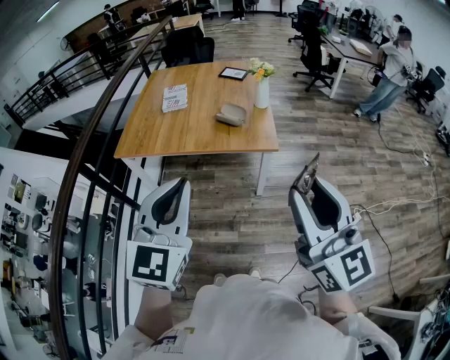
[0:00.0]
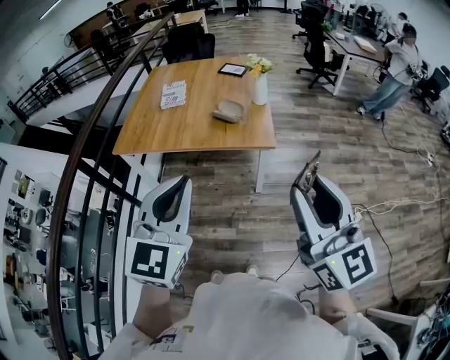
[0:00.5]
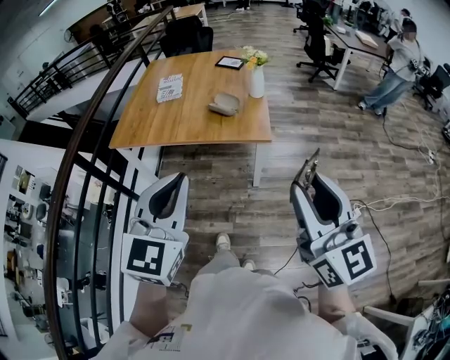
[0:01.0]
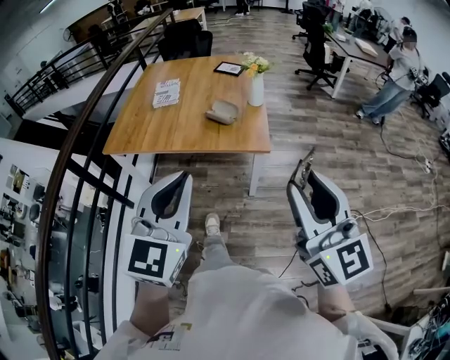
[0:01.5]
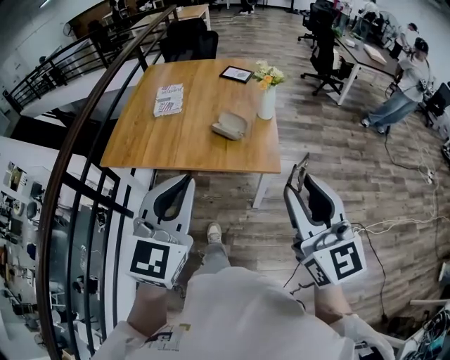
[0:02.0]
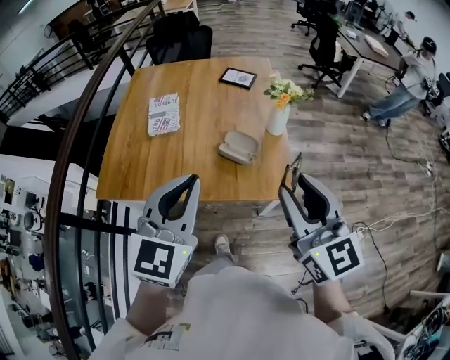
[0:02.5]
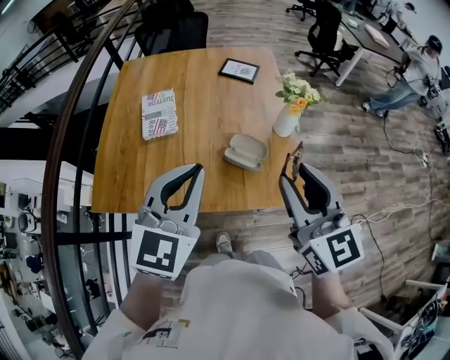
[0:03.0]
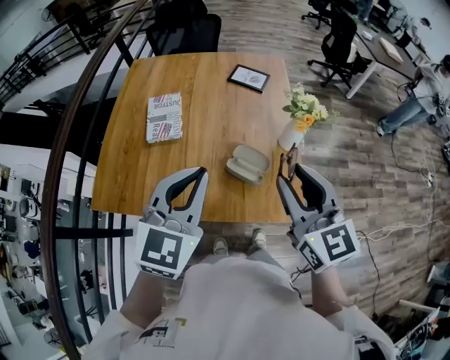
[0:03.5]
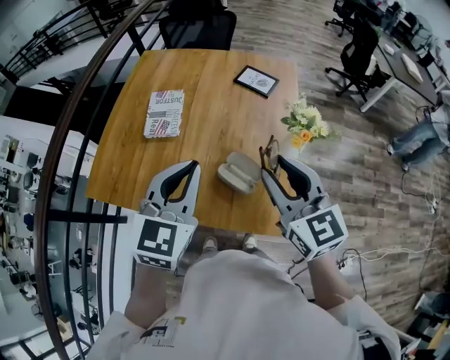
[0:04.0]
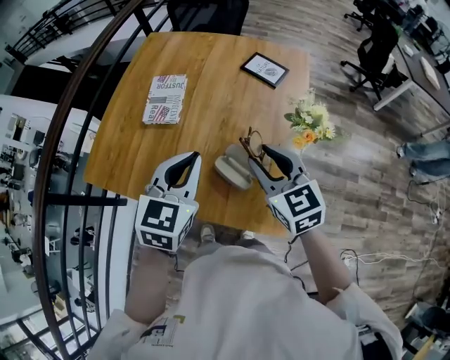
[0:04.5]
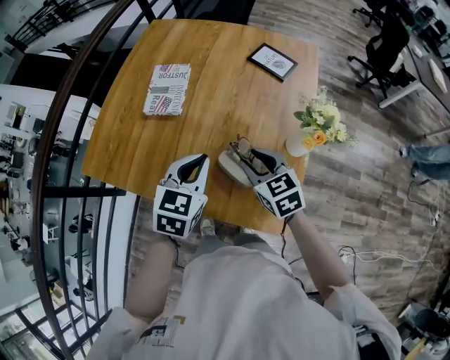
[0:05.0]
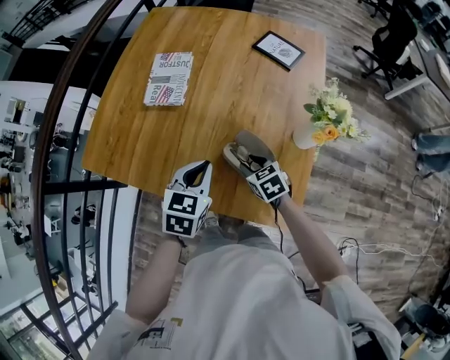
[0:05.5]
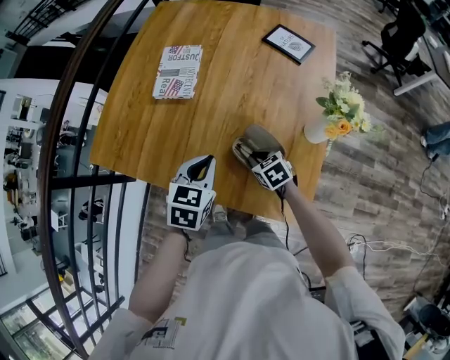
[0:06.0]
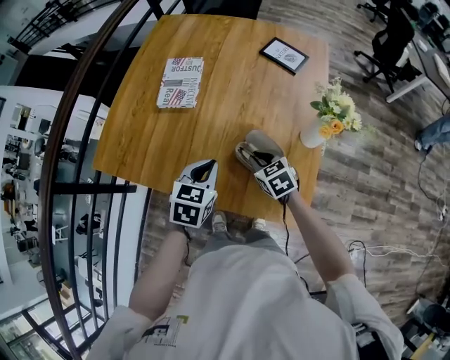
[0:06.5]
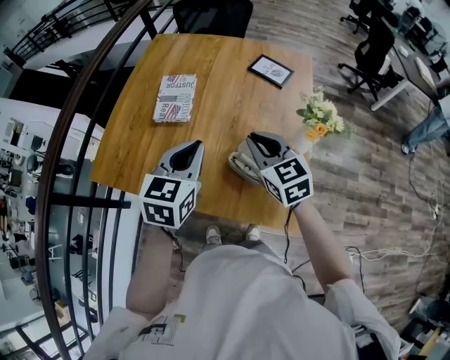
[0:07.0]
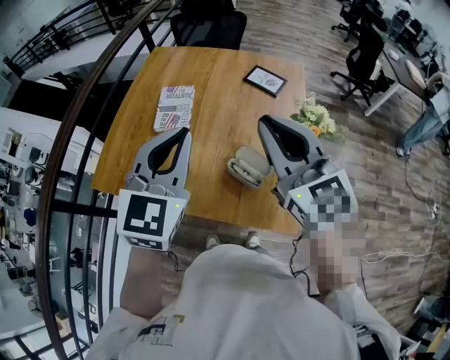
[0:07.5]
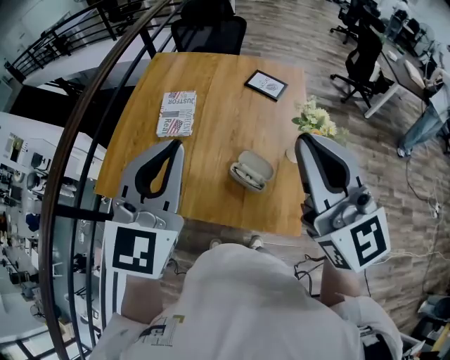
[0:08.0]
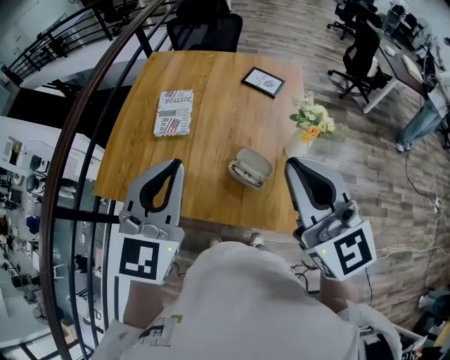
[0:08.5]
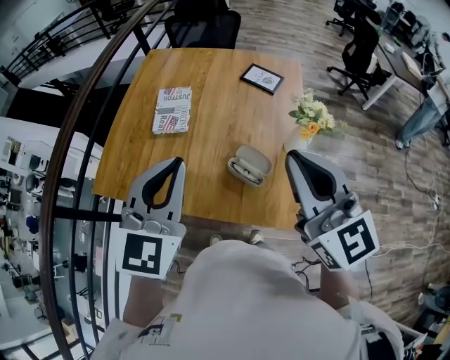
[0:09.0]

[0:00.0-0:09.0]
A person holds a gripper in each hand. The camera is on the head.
0:00.0 to 0:02.0: The two grippers go some 20 cm forward.
0:02.0 to 0:04.5: Both grippers are carried forward, roughly 50 cm. The left gripper changes its angle by some 20 degrees; the right gripper rotates approximately 30 degrees.
0:04.5 to 0:07.0: Both grippers travel together to the left, roughly 5 cm. The left gripper moves some 15 cm downward and comes back. The right gripper moves about 30 cm downward and comes back, and closes.
0:07.0 to 0:09.0: The right gripper heads upward and backward, covering about 25 cm, and turns by some 20 degrees. Meanwhile the left gripper goes about 15 cm upward and backward, and changes its angle by about 20 degrees.

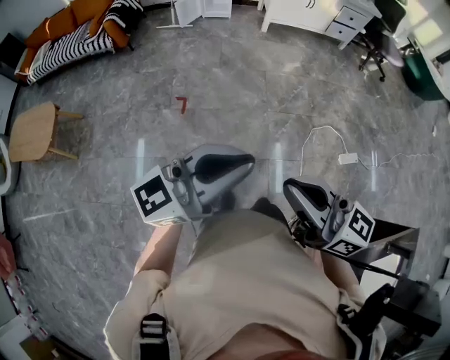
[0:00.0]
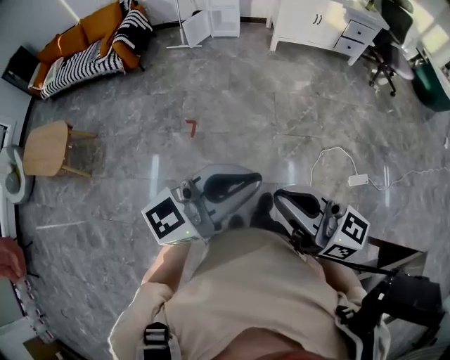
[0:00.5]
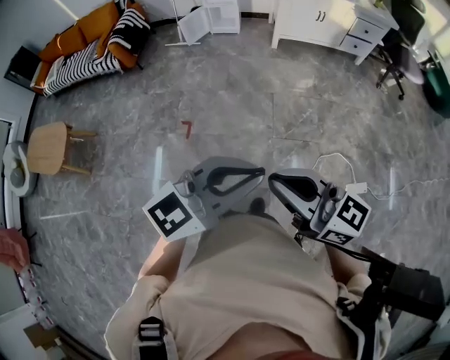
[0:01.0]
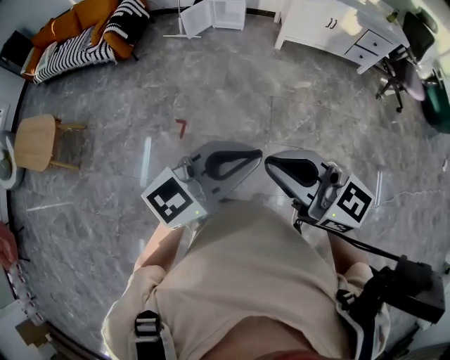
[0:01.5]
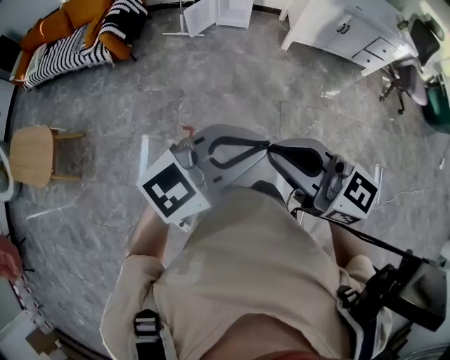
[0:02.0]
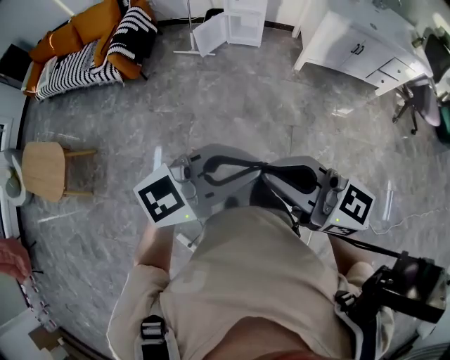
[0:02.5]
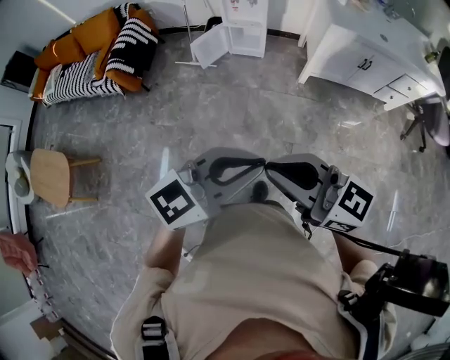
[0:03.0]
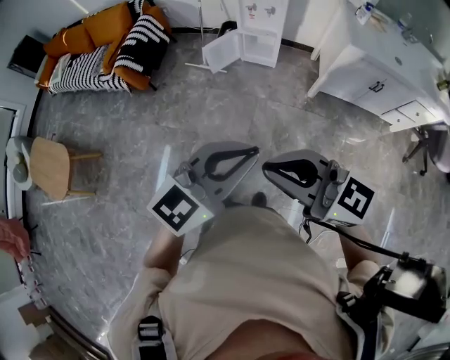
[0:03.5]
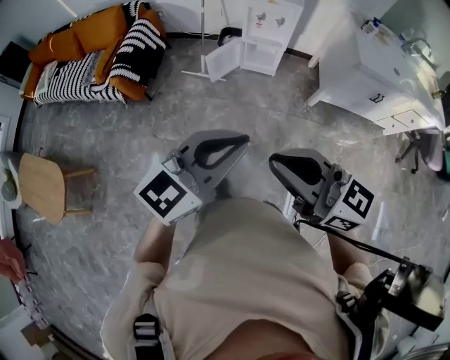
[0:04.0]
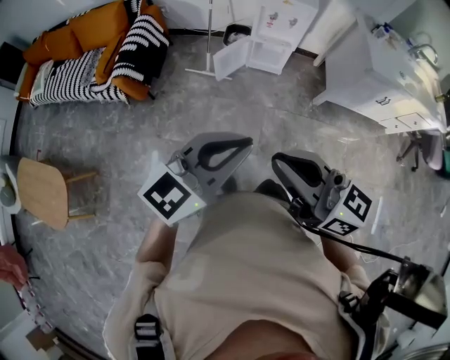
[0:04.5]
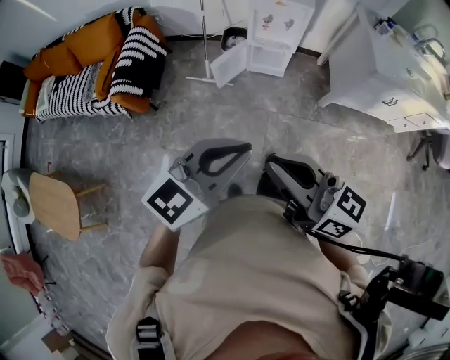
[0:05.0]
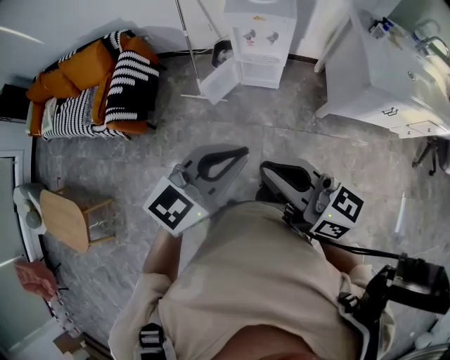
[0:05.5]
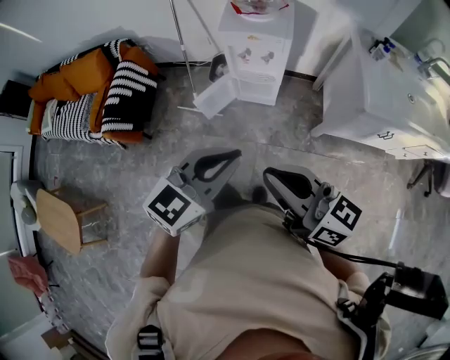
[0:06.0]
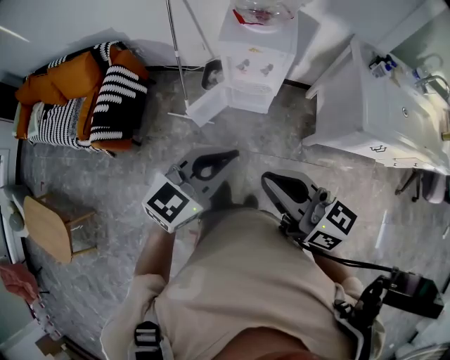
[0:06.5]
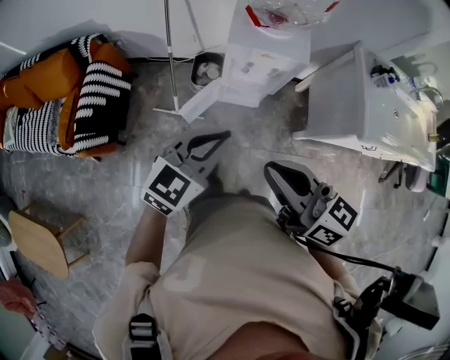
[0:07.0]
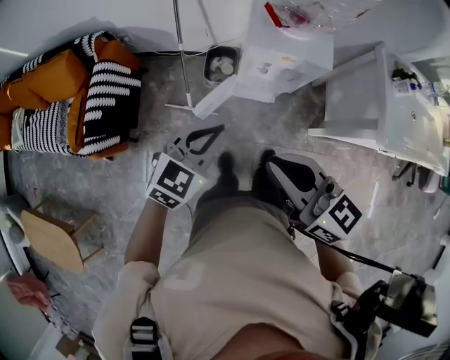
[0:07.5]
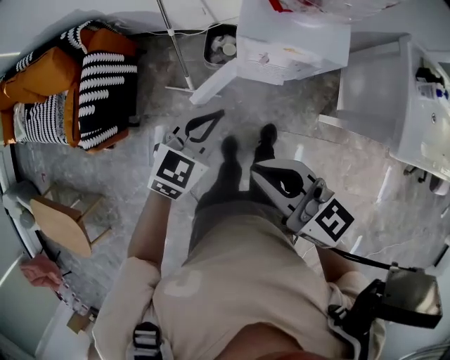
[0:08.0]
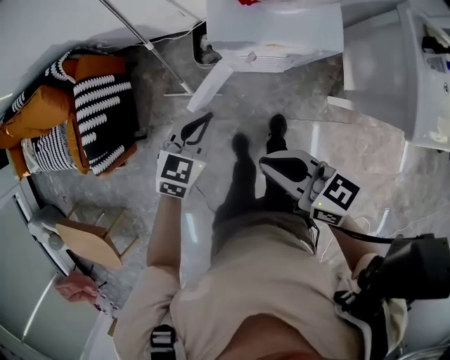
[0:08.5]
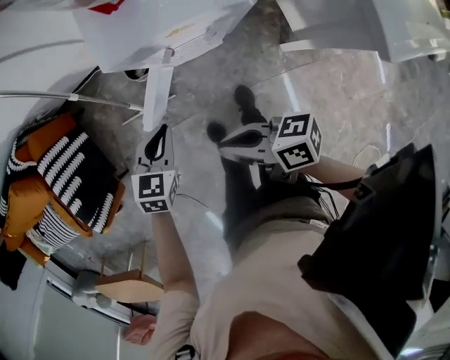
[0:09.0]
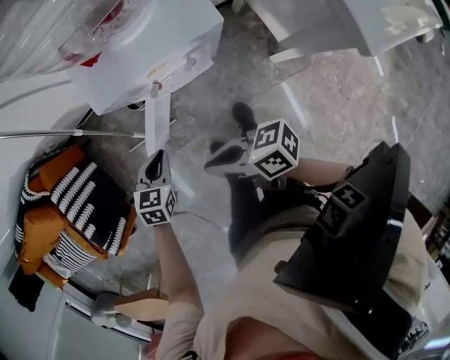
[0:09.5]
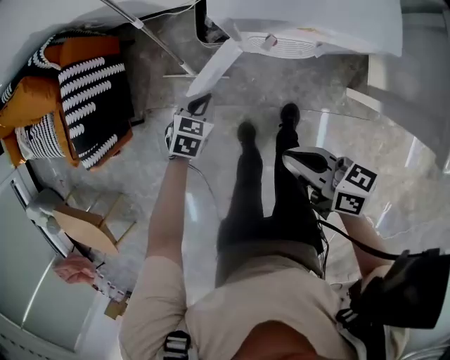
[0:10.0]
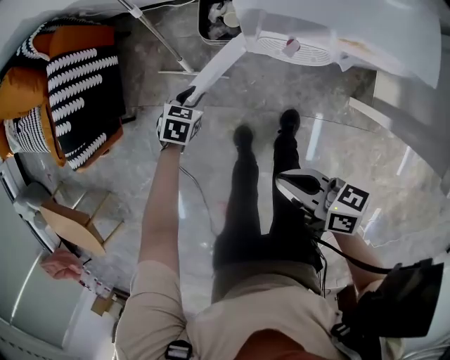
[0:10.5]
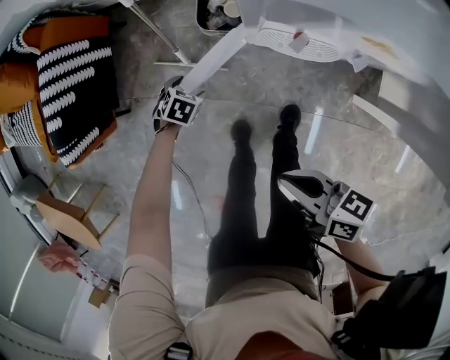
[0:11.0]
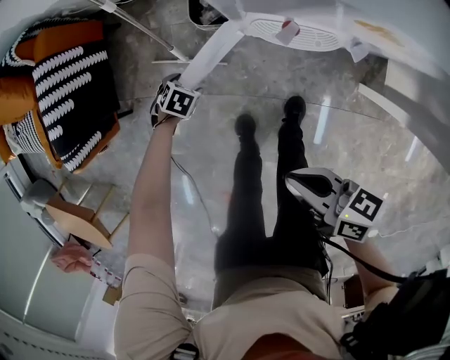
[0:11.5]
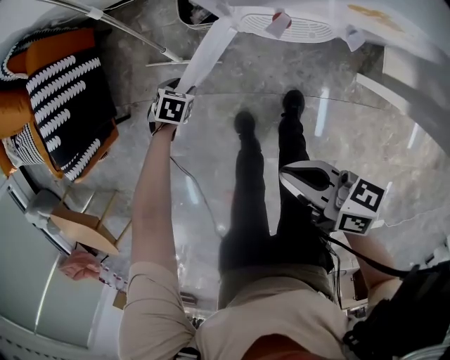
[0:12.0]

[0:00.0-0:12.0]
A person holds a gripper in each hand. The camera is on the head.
0:00.0 to 0:02.0: Both grippers are carried about 50 cm. The left gripper swivels about 30 degrees.
0:02.0 to 0:04.0: The two grippers travel together, about 40 cm. The left gripper turns by about 20 degrees.
0:04.0 to 0:06.0: The left gripper goes some 30 cm forward; the right gripper goes approximately 30 cm forward and to the right.
0:06.0 to 0:08.0: The right gripper shifts about 30 cm forward and to the left; the left gripper shifts some 35 cm forward and downward.
0:08.0 to 0:10.0: The grippers both shift downward by approximately 30 cm. The right gripper swivels about 30 degrees. The left gripper turns by approximately 30 degrees.
0:10.0 to 0:12.0: The right gripper goes some 10 cm downward. Meanwhile the left gripper travels downward by some 20 cm, rotates some 20 degrees, and opens its fingers.

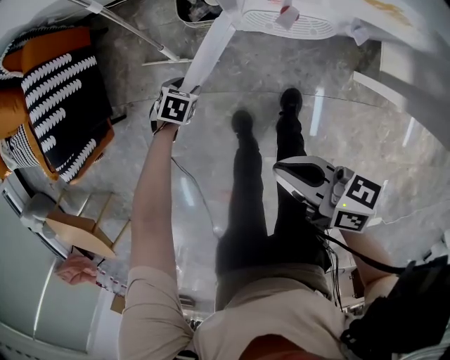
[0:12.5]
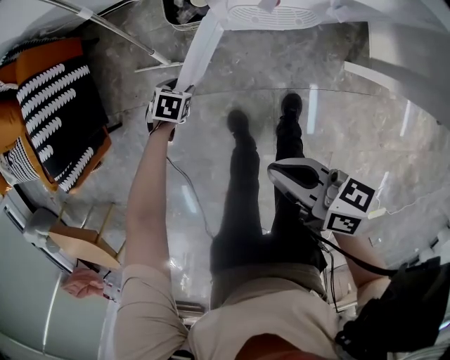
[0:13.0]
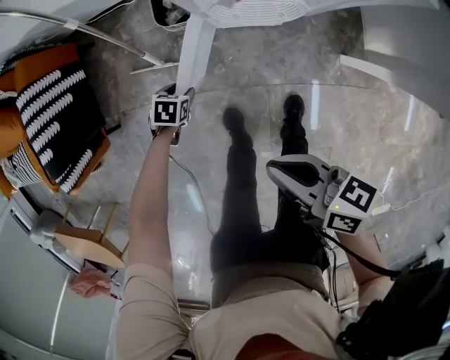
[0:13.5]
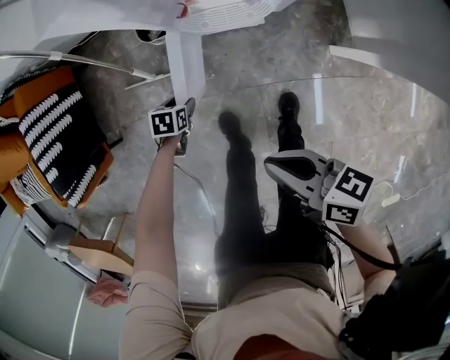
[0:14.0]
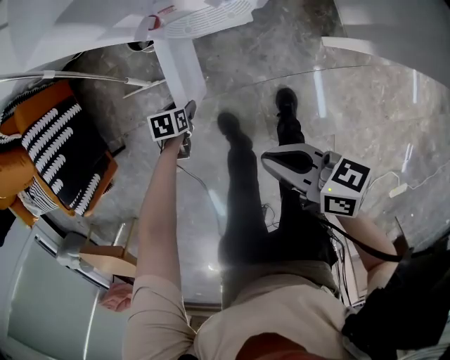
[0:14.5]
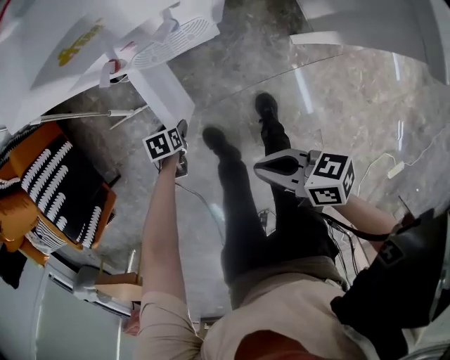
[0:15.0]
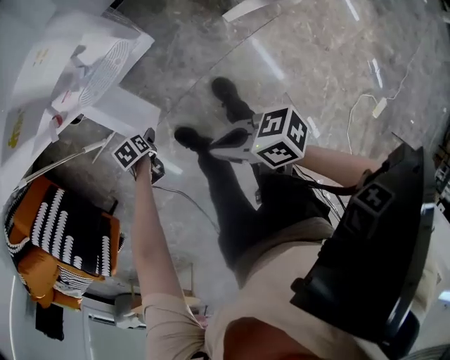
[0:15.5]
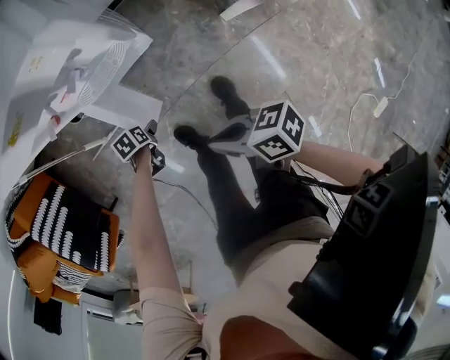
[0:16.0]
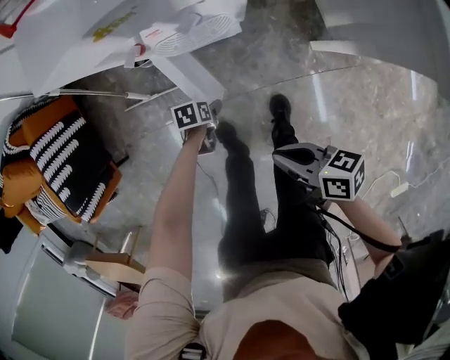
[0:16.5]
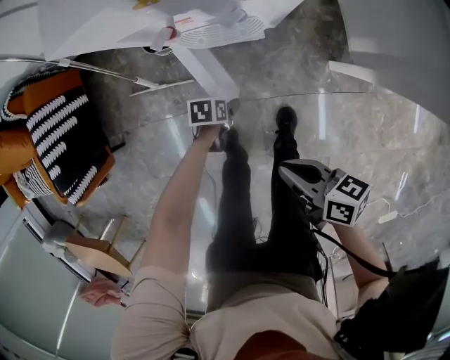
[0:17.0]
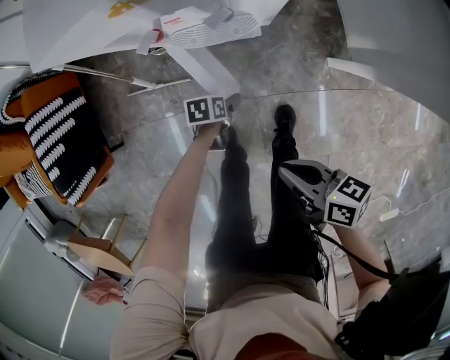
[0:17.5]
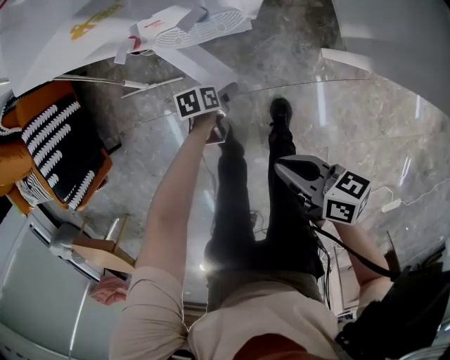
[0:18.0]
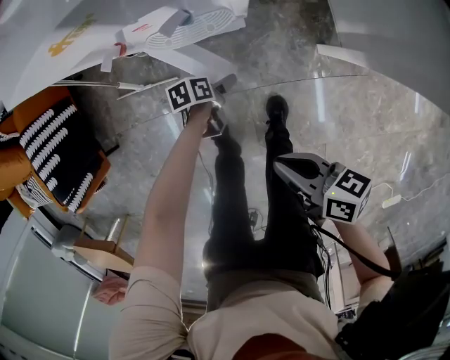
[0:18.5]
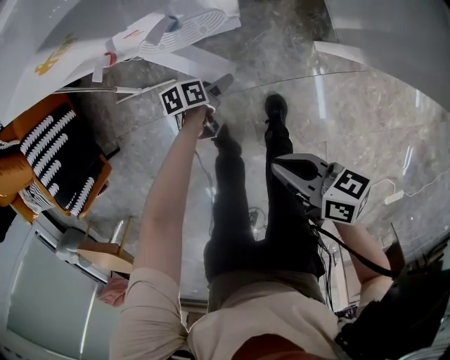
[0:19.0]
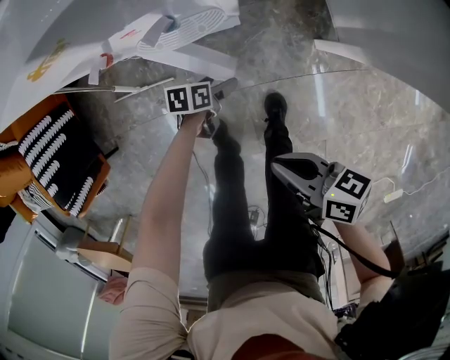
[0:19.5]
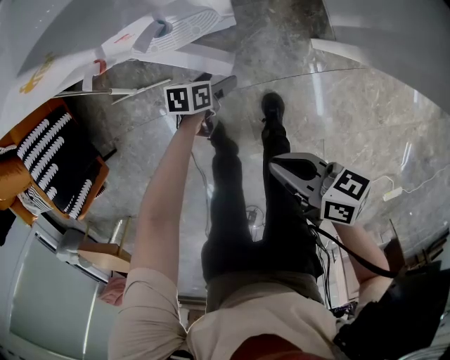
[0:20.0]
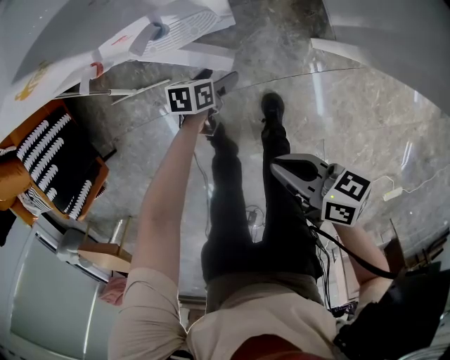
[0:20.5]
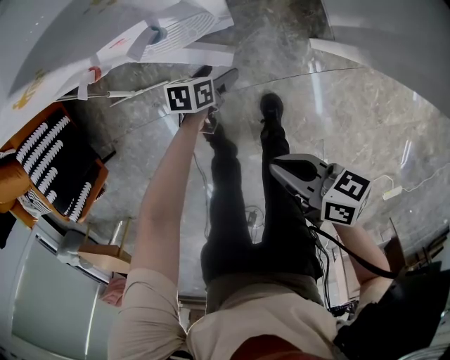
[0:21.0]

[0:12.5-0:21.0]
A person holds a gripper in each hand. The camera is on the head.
0:12.5 to 0:14.5: The left gripper moves some 10 cm. The right gripper ends up about 10 cm from where it was.
0:14.5 to 0:16.5: The right gripper shifts by some 10 cm. The left gripper changes place by roughly 10 cm.
0:16.5 to 0:19.0: The left gripper shifts by about 10 cm, and swivels some 20 degrees.
0:19.0 to 0:21.0: The left gripper ends up about 5 cm from where it was, and swivels approximately 20 degrees.
